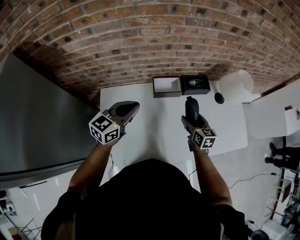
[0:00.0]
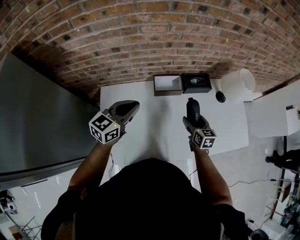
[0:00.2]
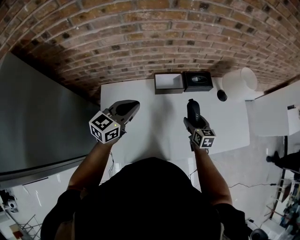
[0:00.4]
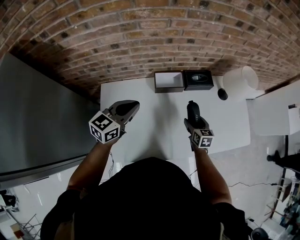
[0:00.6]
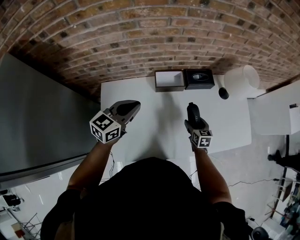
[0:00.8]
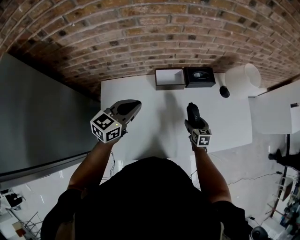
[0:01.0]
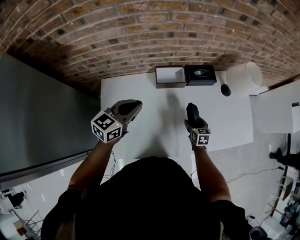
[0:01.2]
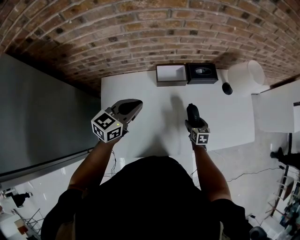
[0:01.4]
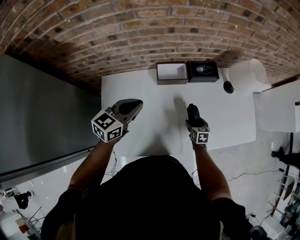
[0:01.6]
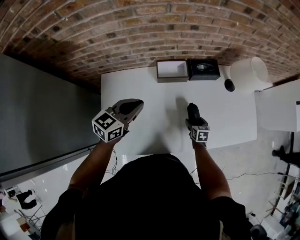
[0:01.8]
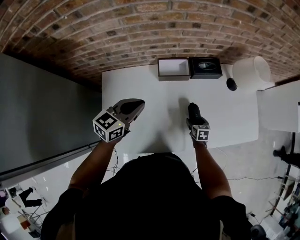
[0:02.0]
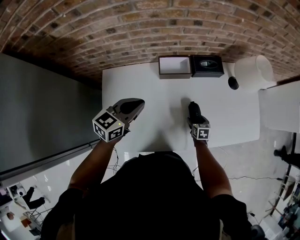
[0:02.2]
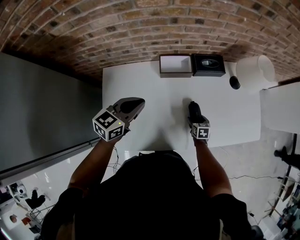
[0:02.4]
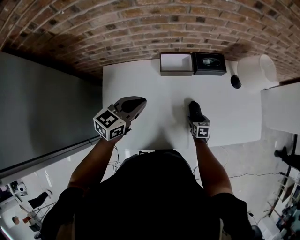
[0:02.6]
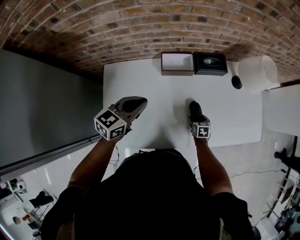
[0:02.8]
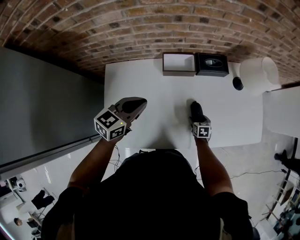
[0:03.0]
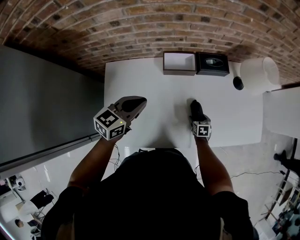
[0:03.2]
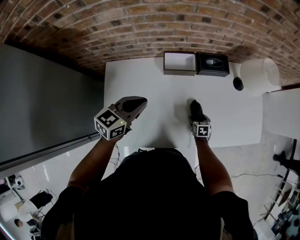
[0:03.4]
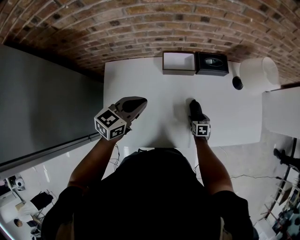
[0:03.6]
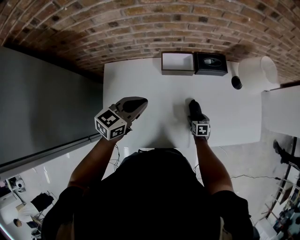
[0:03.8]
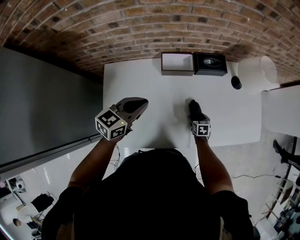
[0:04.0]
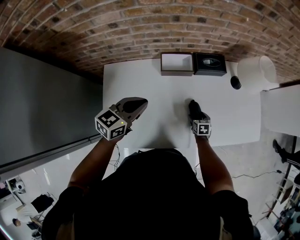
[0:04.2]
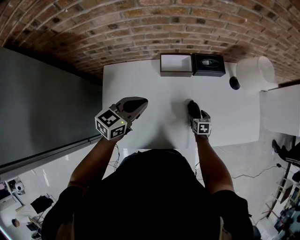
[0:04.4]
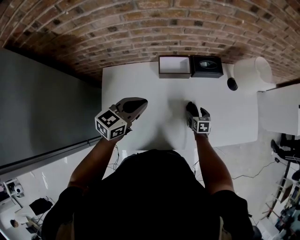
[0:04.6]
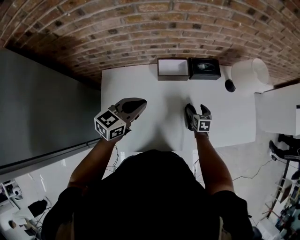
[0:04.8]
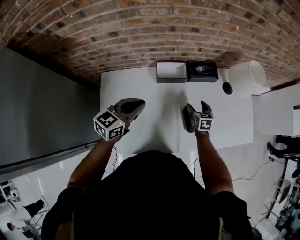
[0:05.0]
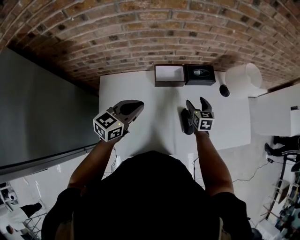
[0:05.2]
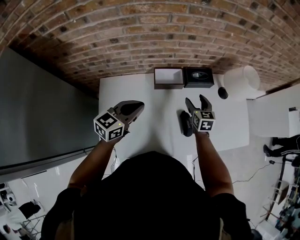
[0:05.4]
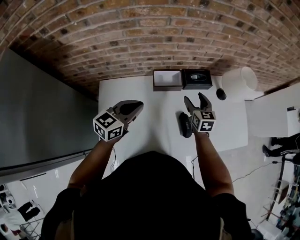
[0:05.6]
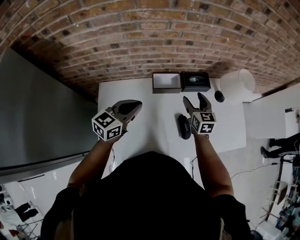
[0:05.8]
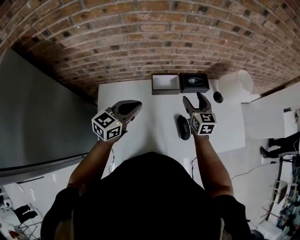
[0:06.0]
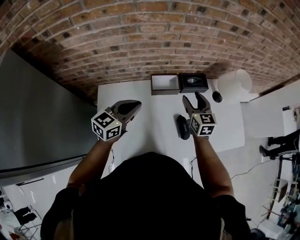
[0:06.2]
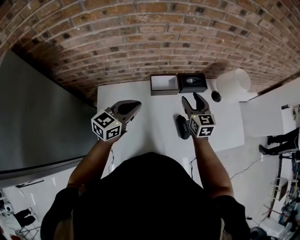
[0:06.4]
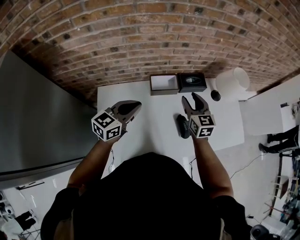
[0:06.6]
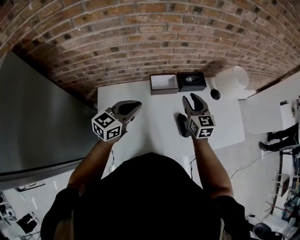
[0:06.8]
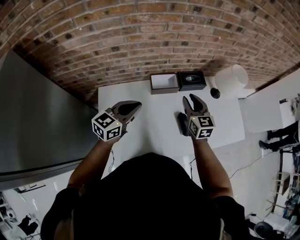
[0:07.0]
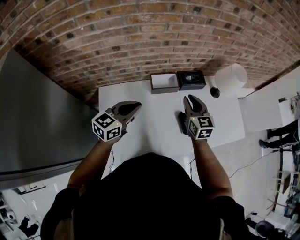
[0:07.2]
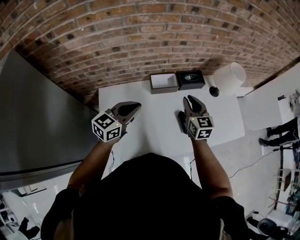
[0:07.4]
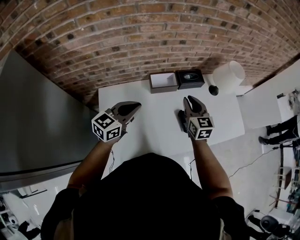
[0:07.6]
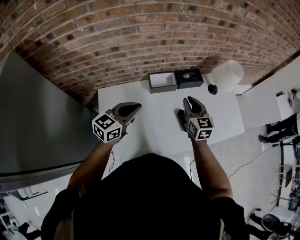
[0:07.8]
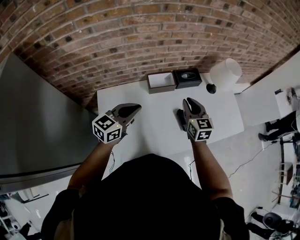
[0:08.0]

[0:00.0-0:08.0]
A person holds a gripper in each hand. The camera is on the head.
0:00.0 to 0:01.6: The right gripper travels downward by some 20 cm, and swivels about 20 degrees; the left gripper is displaced downward by some 5 cm.
0:01.6 to 0:03.2: The right gripper is displaced downward by approximately 10 cm.
0:03.2 to 0:04.8: The right gripper moves upward and forward, roughly 10 cm.
0:04.8 to 0:06.4: The right gripper moves upward, roughly 25 cm, and changes its angle by some 30 degrees, while the left gripper is displaced upward by some 5 cm.
0:06.4 to 0:08.0: Both grippers move backward, about 5 cm. The right gripper closes.

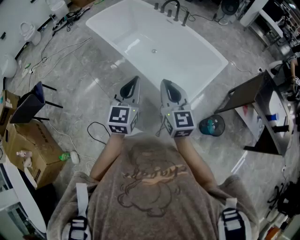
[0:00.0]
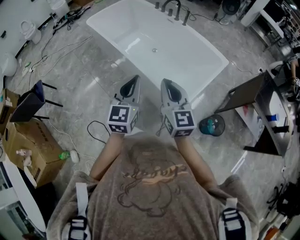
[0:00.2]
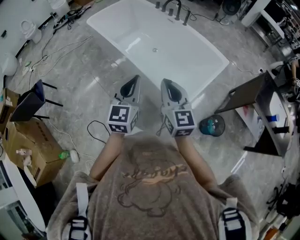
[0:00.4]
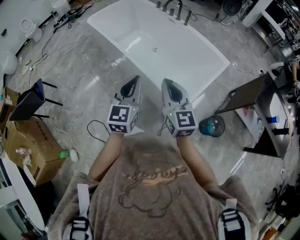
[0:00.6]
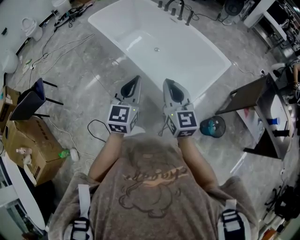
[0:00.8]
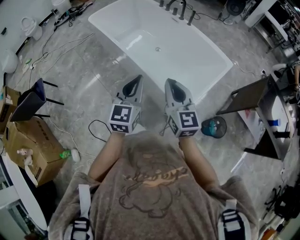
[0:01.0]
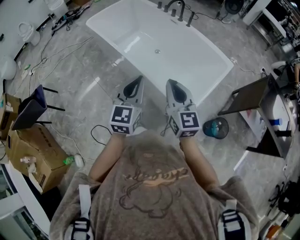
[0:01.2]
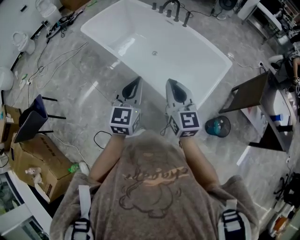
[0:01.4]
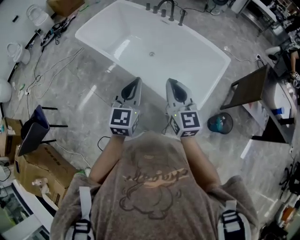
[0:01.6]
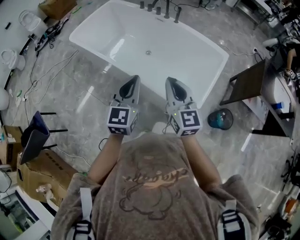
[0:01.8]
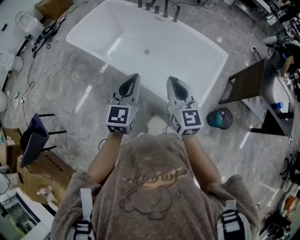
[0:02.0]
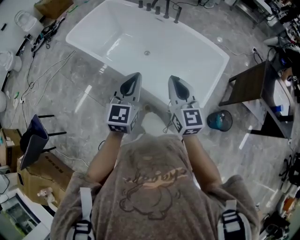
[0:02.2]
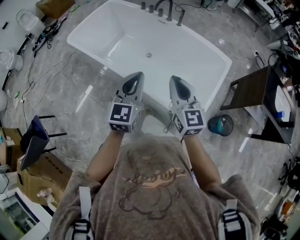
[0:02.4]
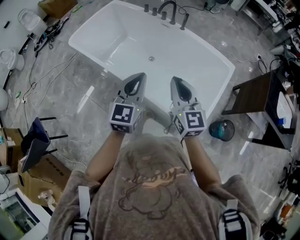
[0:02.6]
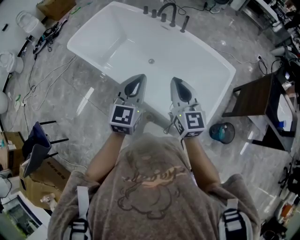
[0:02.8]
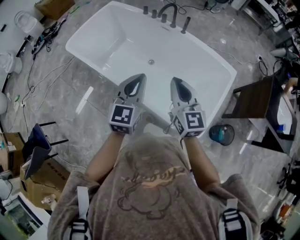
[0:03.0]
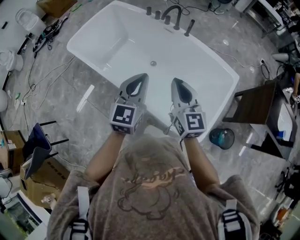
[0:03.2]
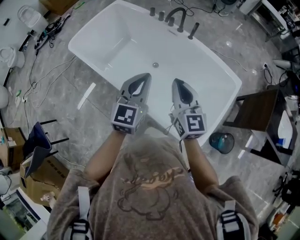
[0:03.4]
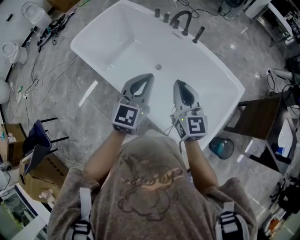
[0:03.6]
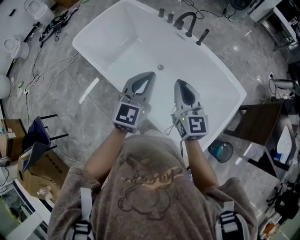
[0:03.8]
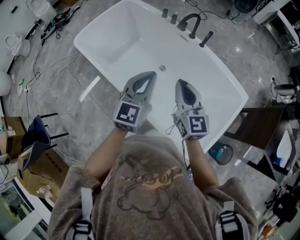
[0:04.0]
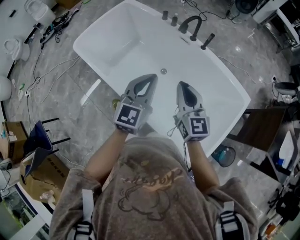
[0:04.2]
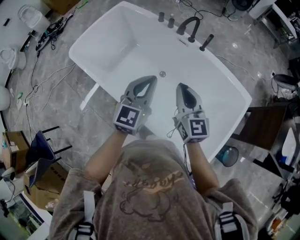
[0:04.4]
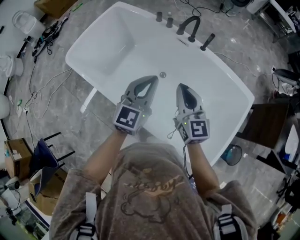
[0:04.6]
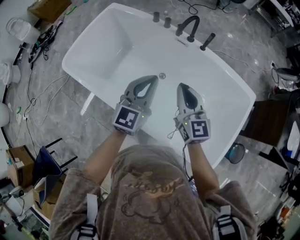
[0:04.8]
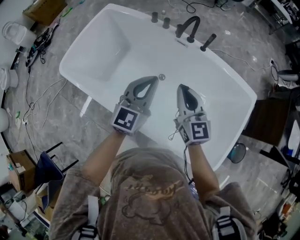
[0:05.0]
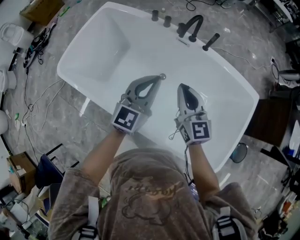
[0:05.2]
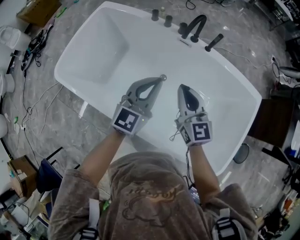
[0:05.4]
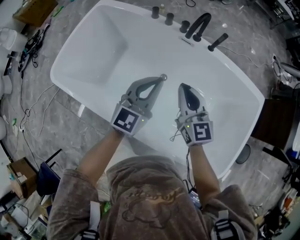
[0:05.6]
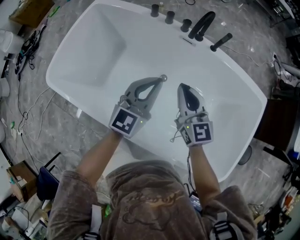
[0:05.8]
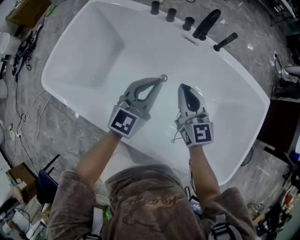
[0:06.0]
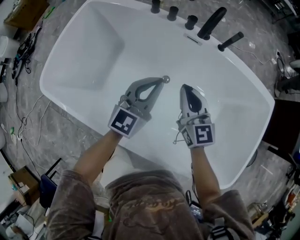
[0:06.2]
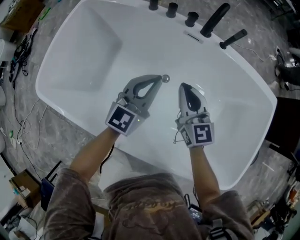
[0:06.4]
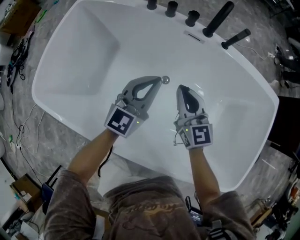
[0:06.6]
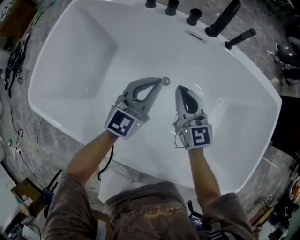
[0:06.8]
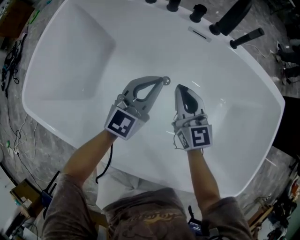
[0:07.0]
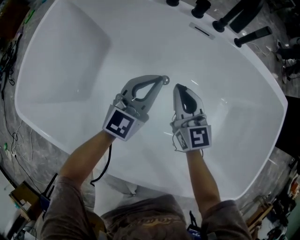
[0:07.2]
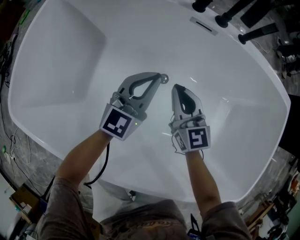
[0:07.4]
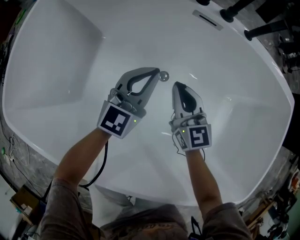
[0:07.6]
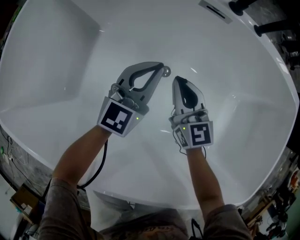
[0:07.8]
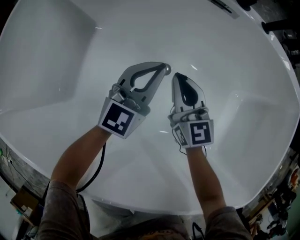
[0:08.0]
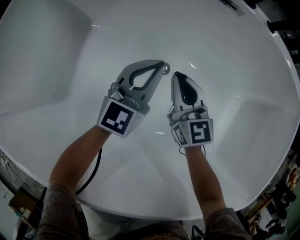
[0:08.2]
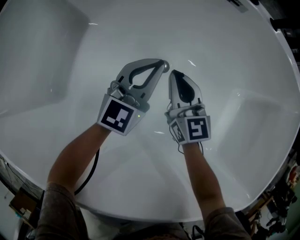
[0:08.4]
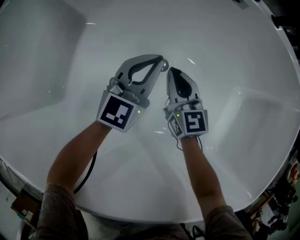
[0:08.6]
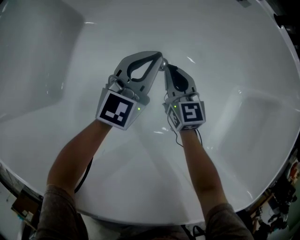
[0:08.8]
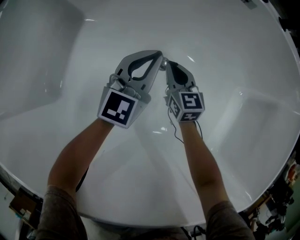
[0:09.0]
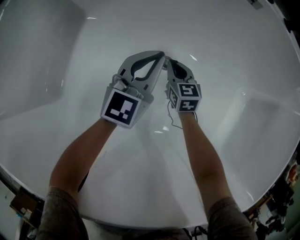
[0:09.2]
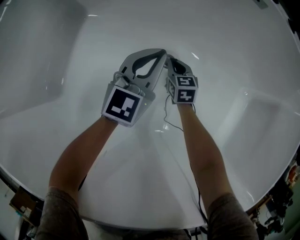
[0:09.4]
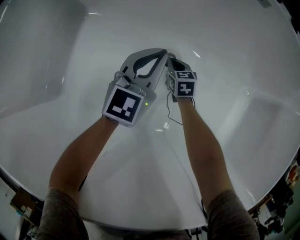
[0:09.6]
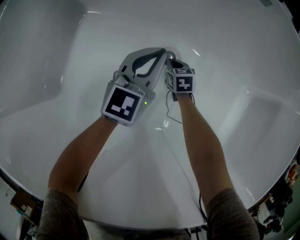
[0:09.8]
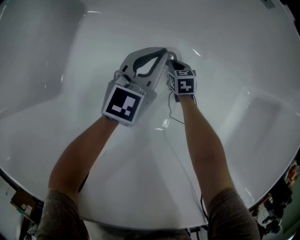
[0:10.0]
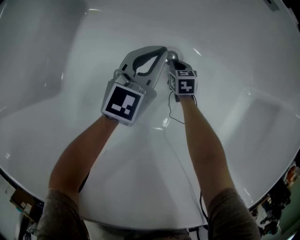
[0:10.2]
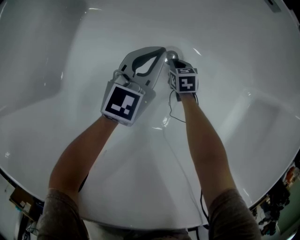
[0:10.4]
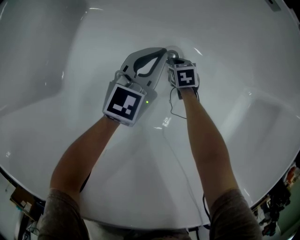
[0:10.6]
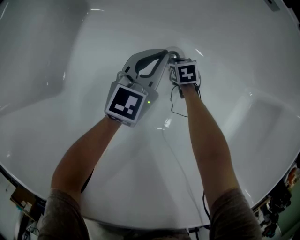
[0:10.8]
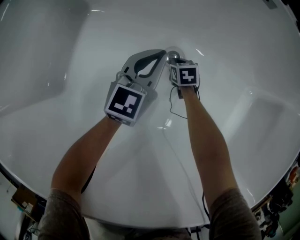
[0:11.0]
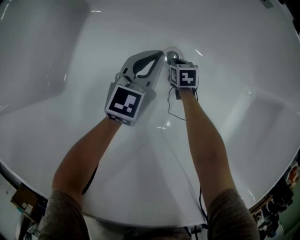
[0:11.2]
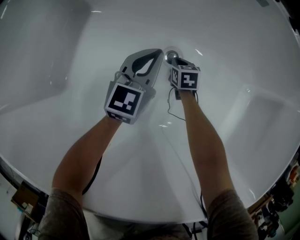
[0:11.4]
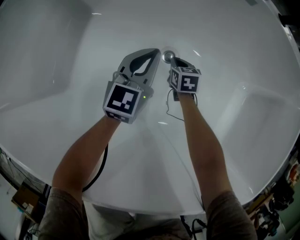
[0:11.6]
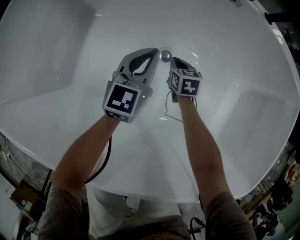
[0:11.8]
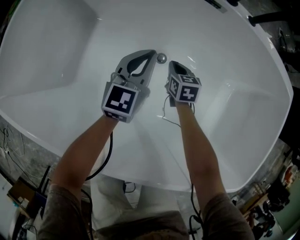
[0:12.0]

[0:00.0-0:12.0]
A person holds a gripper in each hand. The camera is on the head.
0:00.0 to 0:01.6: The right gripper heads forward, covering approximately 10 cm; the left gripper heads forward and to the left, covering approximately 15 cm.
0:01.6 to 0:03.0: The two grippers go about 20 cm forward.
0:03.0 to 0:04.4: Both grippers travel together forward, roughly 20 cm.
0:04.4 to 0:06.0: The left gripper is displaced forward, downward and to the left by roughly 25 cm, and turns by roughly 20 degrees. Meanwhile the right gripper shifts roughly 25 cm downward, forward and to the left.
0:06.0 to 0:07.6: Both grippers move downward, roughly 20 cm.
0:07.6 to 0:09.0: The right gripper shifts some 25 cm downward. The left gripper travels downward by about 15 cm.
0:09.0 to 0:10.4: The right gripper heads downward, covering about 20 cm, and angles its fingers downward, by approximately 30 degrees; the left gripper is displaced downward by about 5 cm.
0:10.4 to 0:12.0: The right gripper shifts approximately 25 cm upward. The left gripper travels upward by about 15 cm.

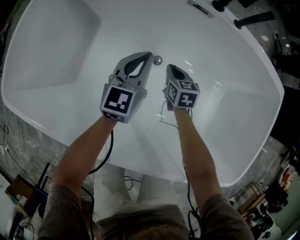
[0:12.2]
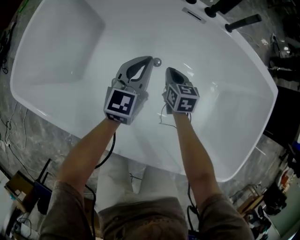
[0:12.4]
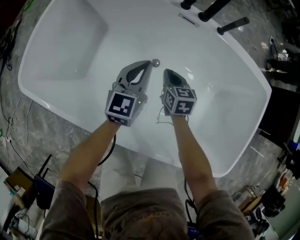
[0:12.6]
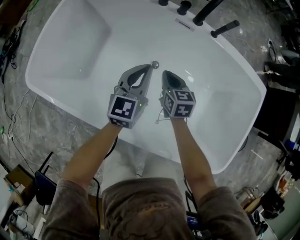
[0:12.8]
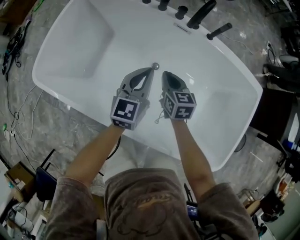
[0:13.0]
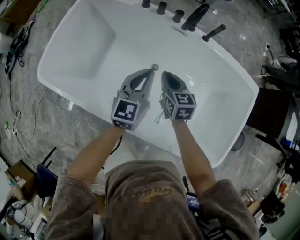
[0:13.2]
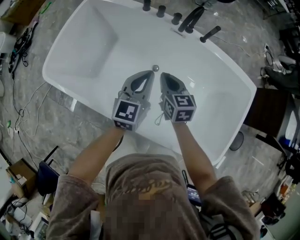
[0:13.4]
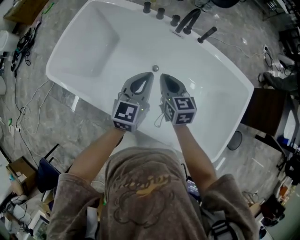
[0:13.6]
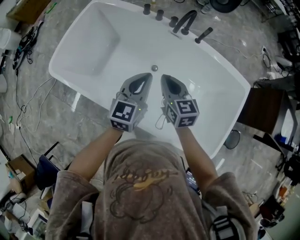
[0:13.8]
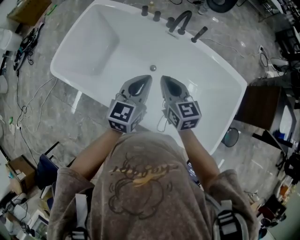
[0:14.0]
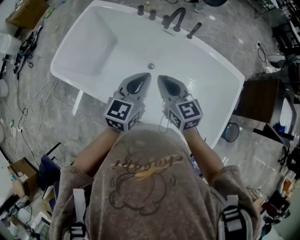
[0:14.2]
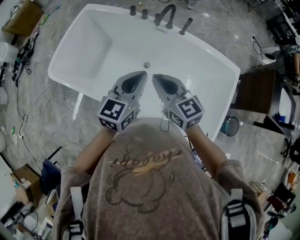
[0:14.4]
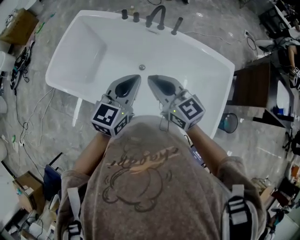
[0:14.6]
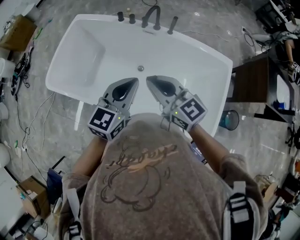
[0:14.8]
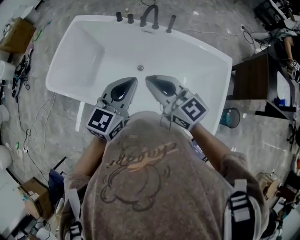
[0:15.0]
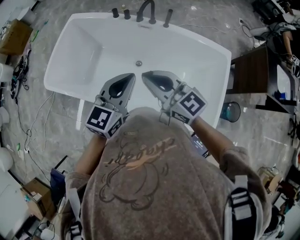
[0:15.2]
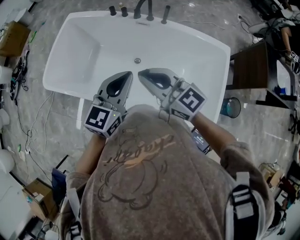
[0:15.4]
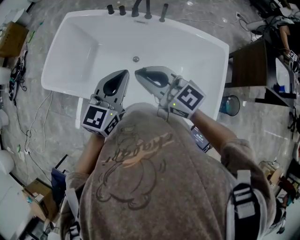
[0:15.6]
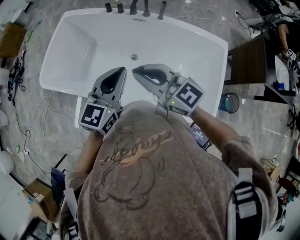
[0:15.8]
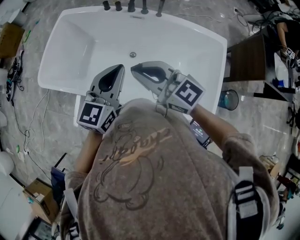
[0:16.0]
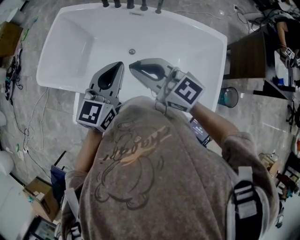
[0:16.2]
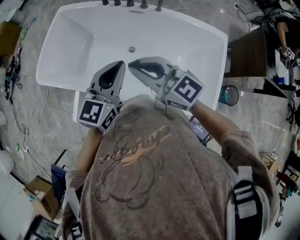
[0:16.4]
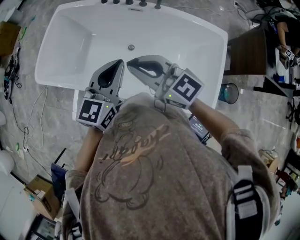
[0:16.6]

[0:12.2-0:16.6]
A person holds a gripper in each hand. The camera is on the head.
0:12.2 to 0:13.6: The left gripper heads upward and backward, covering about 30 cm. Meanwhile the right gripper goes some 40 cm upward.
0:13.6 to 0:15.2: The left gripper travels backward and upward by about 20 cm; the right gripper goes about 25 cm upward and backward, and turns by roughly 30 degrees.
0:15.2 to 0:16.6: There are only small adjustments of the grippers.
